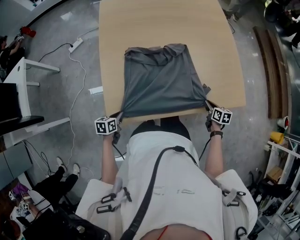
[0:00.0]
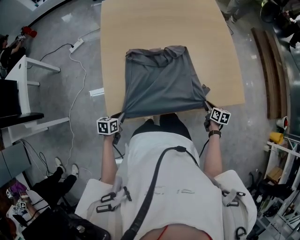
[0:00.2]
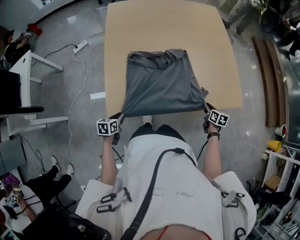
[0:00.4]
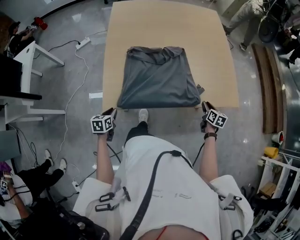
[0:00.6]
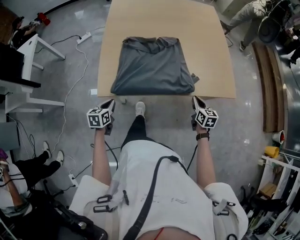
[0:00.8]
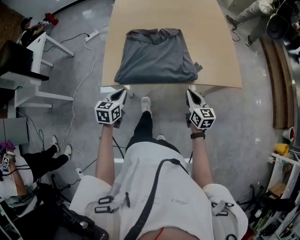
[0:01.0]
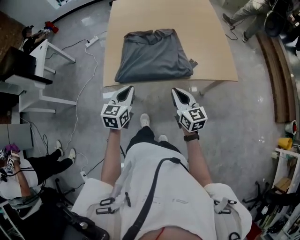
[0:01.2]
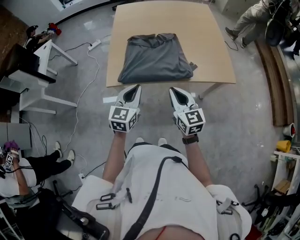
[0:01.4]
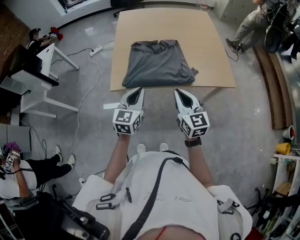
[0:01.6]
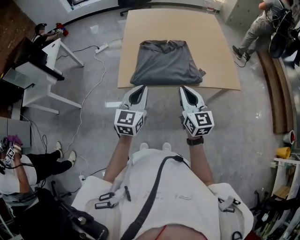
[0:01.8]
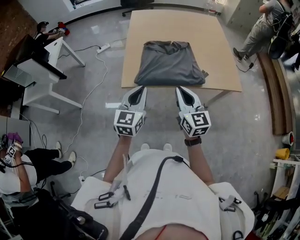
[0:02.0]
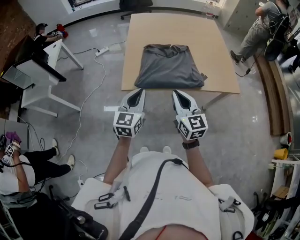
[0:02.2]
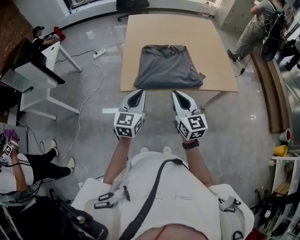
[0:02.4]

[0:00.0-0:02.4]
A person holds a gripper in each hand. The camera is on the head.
0:00.0 to 0:01.2: The right gripper travels upward, backward and to the left by approximately 35 cm, and tips its fingers upward by roughly 40 degrees; the left gripper goes about 35 cm upward, to the right and backward, and rotates about 40 degrees.
0:01.2 to 0:02.4: The left gripper is displaced upward and to the left by approximately 10 cm. The right gripper goes about 20 cm to the left and upward.

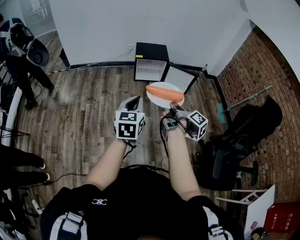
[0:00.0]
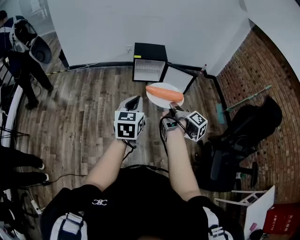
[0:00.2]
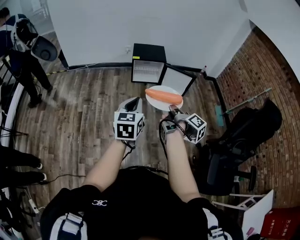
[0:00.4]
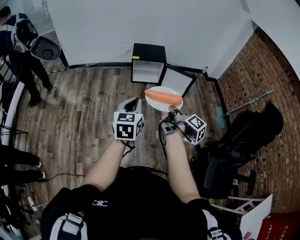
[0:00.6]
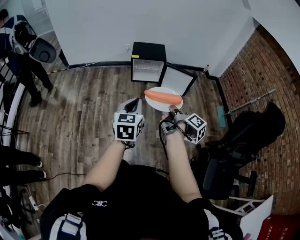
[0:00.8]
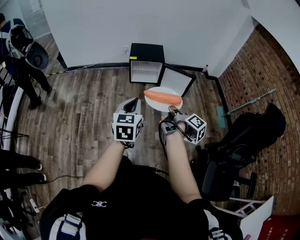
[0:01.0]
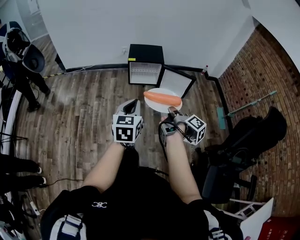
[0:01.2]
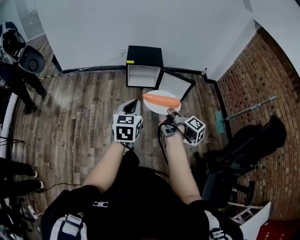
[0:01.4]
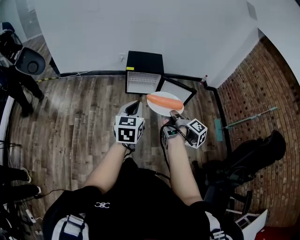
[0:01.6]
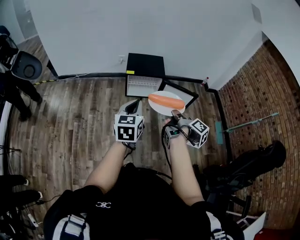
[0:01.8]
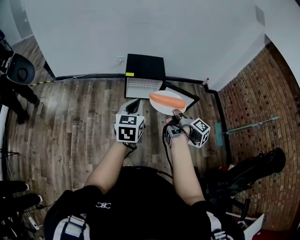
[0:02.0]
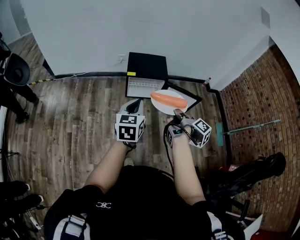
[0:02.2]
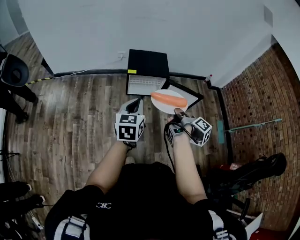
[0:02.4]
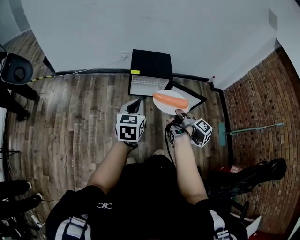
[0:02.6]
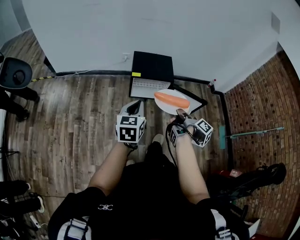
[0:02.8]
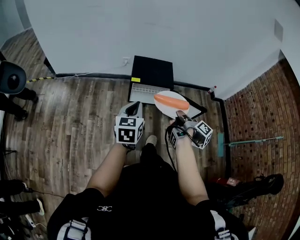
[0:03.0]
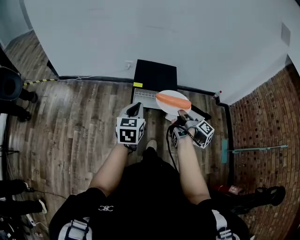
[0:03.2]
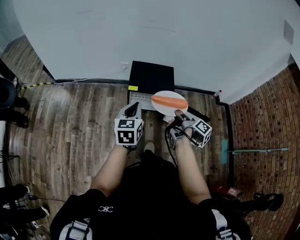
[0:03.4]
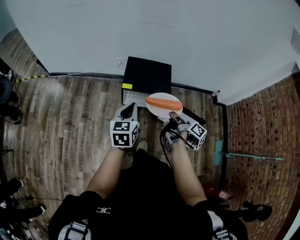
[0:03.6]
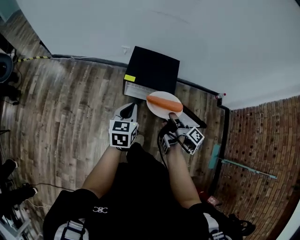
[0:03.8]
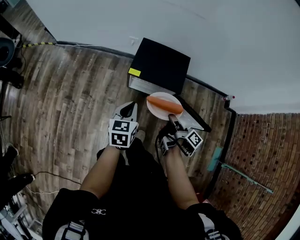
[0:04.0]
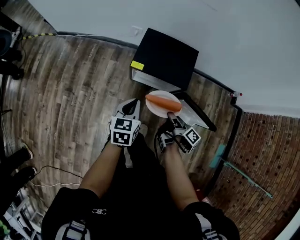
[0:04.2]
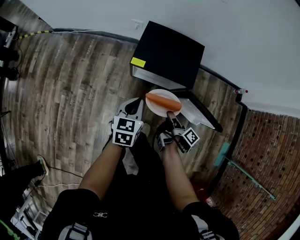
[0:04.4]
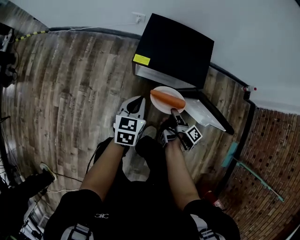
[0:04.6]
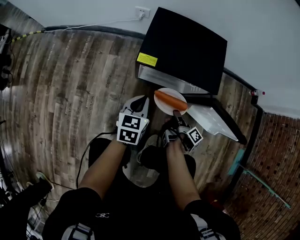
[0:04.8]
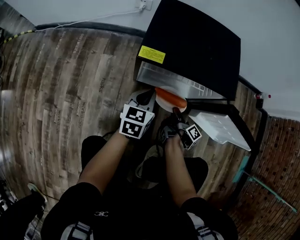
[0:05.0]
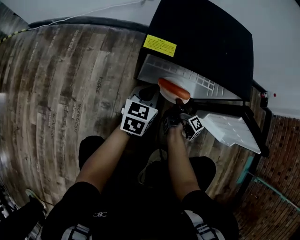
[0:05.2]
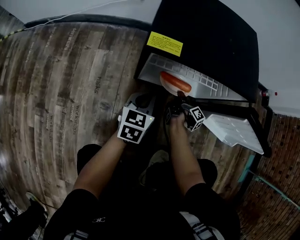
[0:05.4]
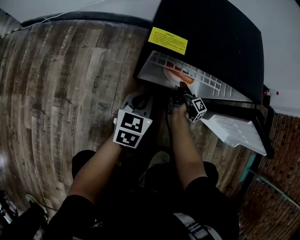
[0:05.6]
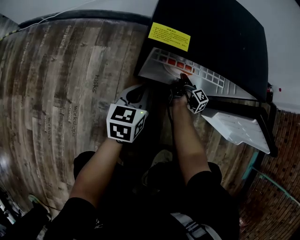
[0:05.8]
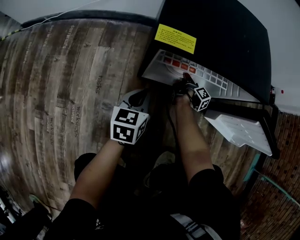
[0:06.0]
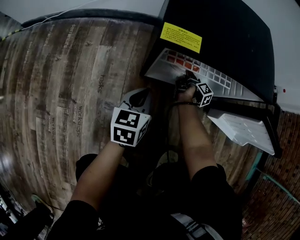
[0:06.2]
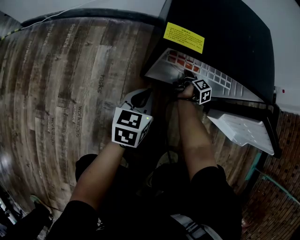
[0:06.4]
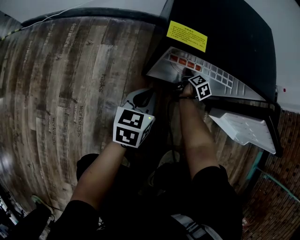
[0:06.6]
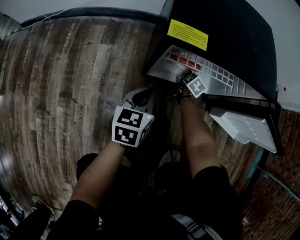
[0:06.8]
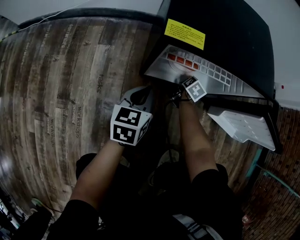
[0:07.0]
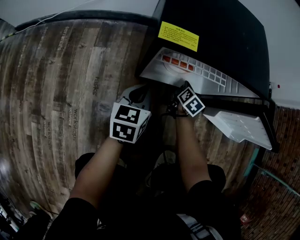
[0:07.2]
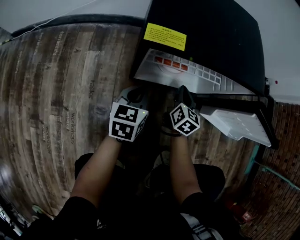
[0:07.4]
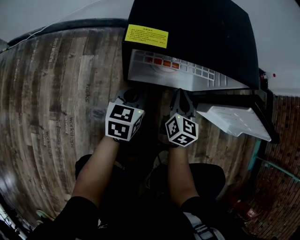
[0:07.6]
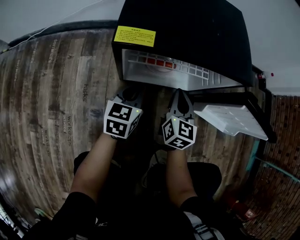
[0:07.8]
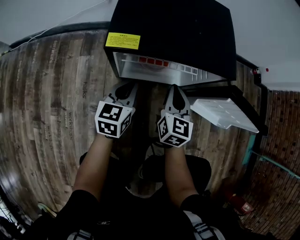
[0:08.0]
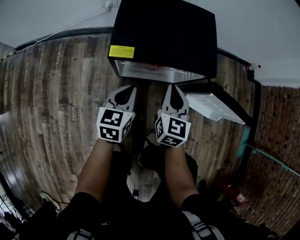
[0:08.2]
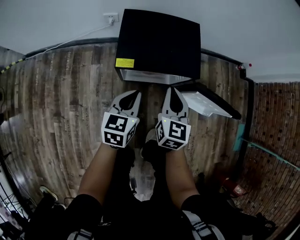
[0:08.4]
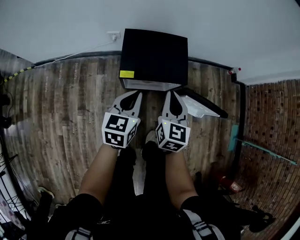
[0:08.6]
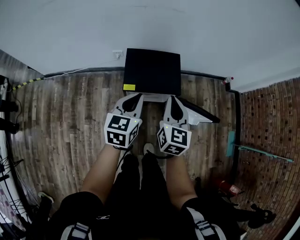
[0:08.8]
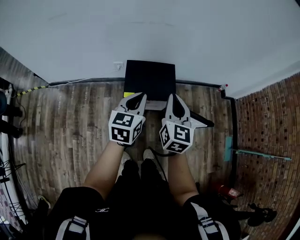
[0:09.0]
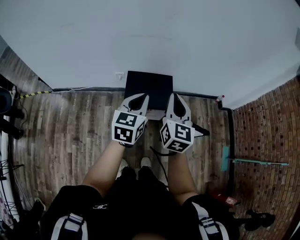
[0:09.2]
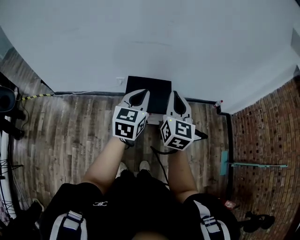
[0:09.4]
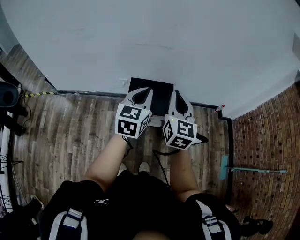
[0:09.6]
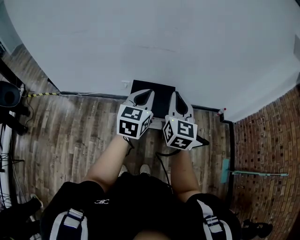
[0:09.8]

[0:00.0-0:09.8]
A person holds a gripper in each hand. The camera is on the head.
0:00.0 to 0:01.4: The left gripper changes place by roughly 20 cm.
0:01.4 to 0:02.8: The left gripper shifts by about 30 cm.
0:02.8 to 0:04.2: The left gripper moves approximately 35 cm.
0:04.2 to 0:05.6: The left gripper is displaced downward by approximately 50 cm.
0:07.0 to 0:08.4: The left gripper is displaced upward by approximately 30 cm.
0:08.4 to 0:09.8: The left gripper is displaced upward by approximately 50 cm.

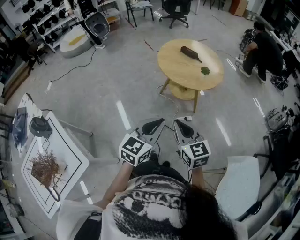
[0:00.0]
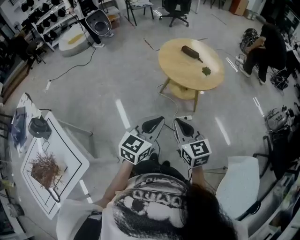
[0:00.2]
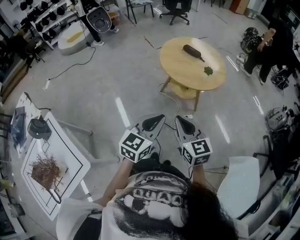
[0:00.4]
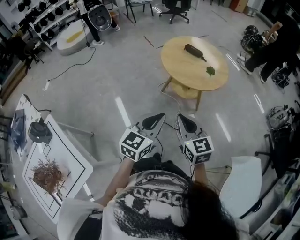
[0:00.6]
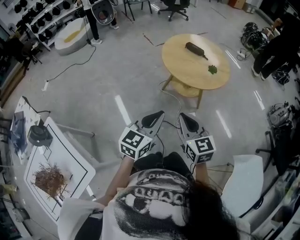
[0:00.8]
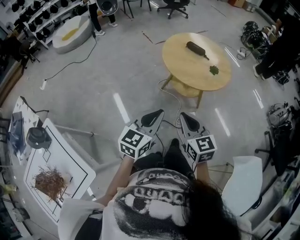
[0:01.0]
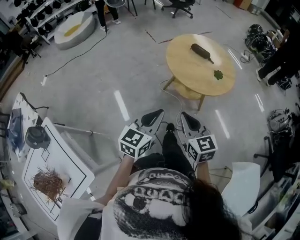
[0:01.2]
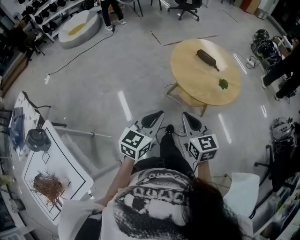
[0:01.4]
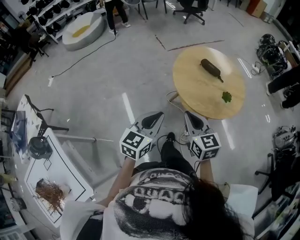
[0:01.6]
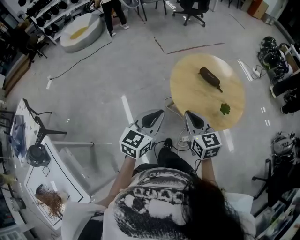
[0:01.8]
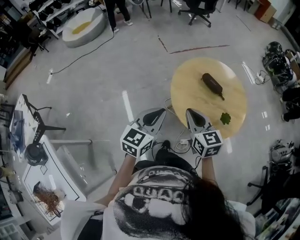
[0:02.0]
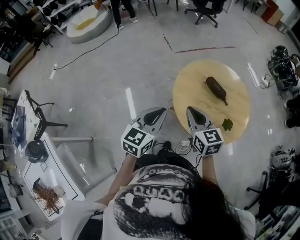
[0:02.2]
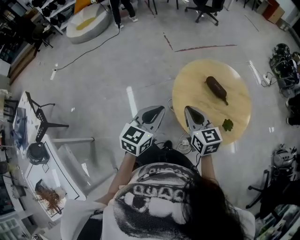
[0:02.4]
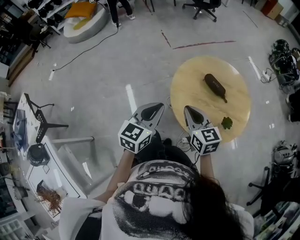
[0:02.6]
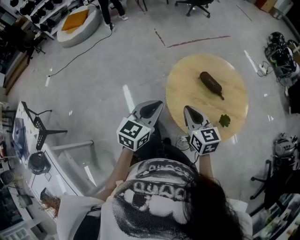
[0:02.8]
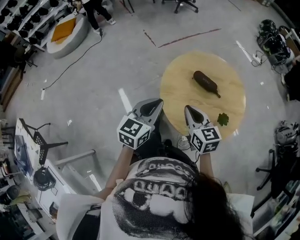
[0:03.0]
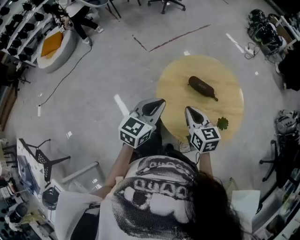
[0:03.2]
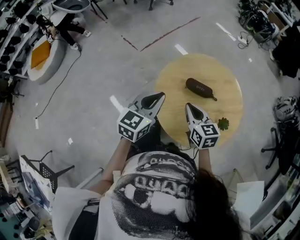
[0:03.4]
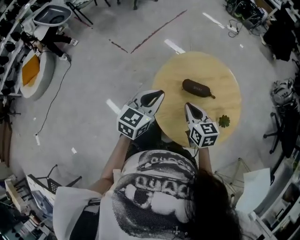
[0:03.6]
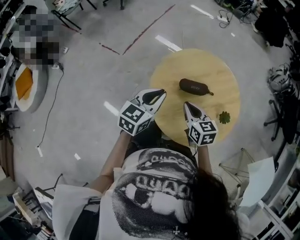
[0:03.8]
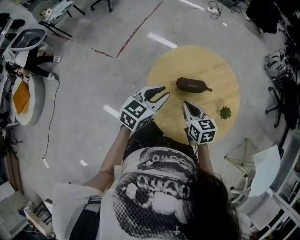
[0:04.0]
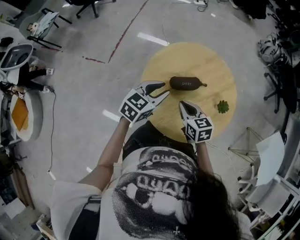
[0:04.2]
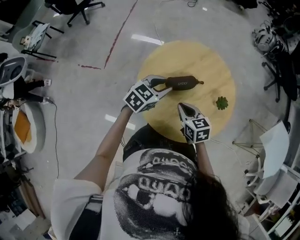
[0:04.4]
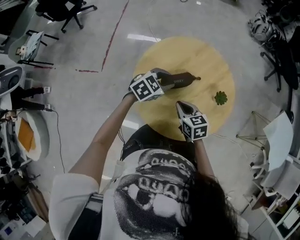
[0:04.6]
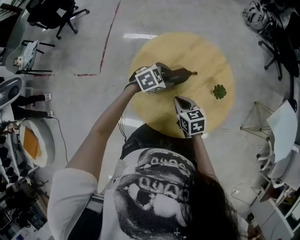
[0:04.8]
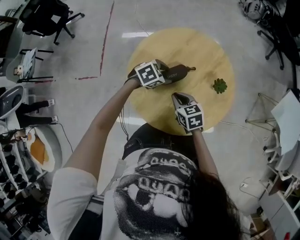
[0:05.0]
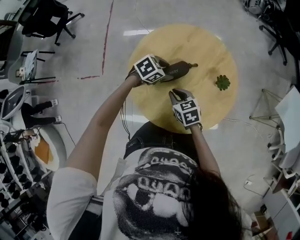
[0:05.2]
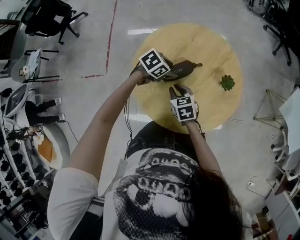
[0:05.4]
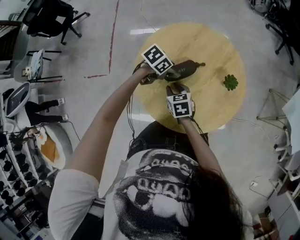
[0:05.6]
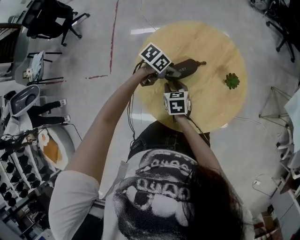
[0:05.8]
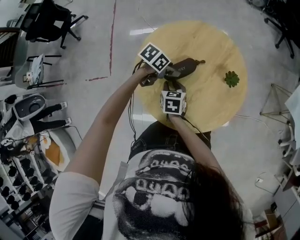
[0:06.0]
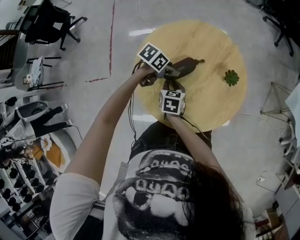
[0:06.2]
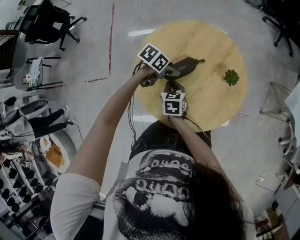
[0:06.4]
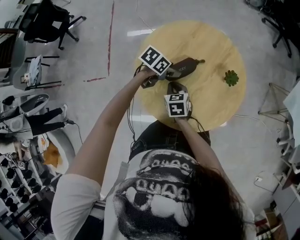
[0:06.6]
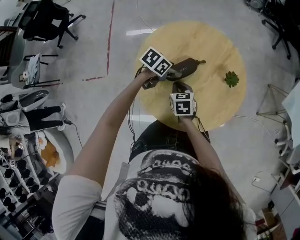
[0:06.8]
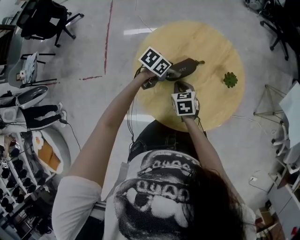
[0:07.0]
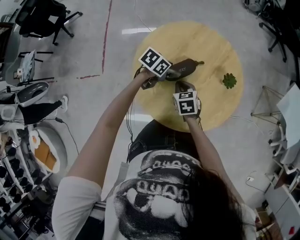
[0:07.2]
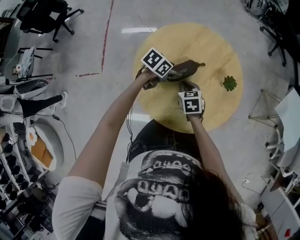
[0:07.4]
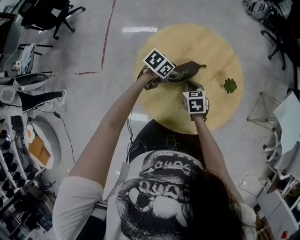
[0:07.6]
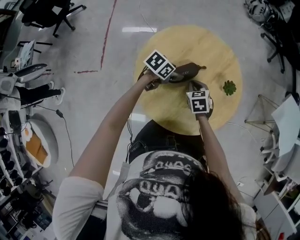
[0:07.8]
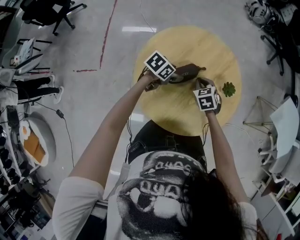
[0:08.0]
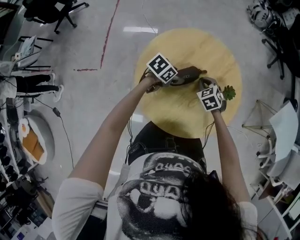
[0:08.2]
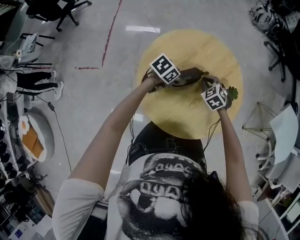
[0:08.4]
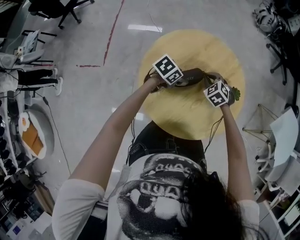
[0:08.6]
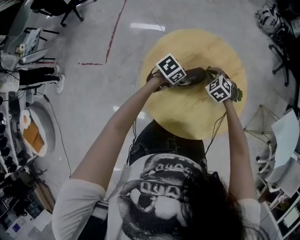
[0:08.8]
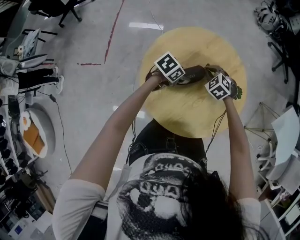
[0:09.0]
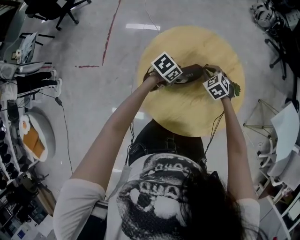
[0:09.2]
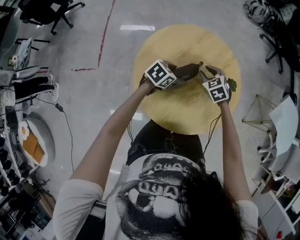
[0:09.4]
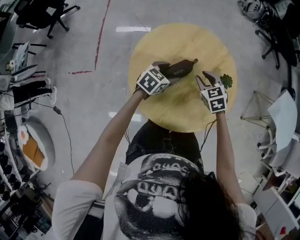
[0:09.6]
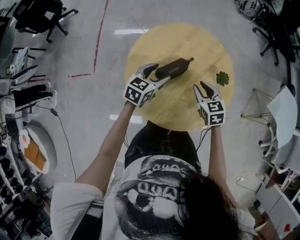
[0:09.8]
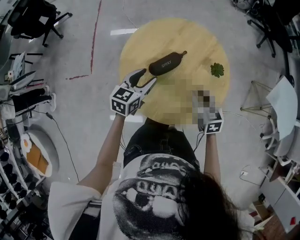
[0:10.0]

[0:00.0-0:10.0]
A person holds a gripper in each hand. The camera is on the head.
0:00.0 to 0:01.4: The left gripper is displaced forward and to the left by some 20 cm, while the right gripper travels forward by approximately 20 cm.
0:01.4 to 0:02.8: Both grippers travel together forward, some 30 cm.
0:02.8 to 0:04.2: The left gripper moves some 30 cm, and turns by approximately 60 degrees, while the right gripper changes place by some 20 cm, and turns by approximately 50 degrees.
0:04.2 to 0:05.8: The grippers both shift downward by roughly 15 cm. The left gripper turns by roughly 50 degrees, and opens its fingers, while the right gripper rotates roughly 30 degrees, and opens its fingers.
0:05.8 to 0:07.2: The right gripper changes place by approximately 5 cm, and closes up.
0:07.2 to 0:08.6: The right gripper shifts about 10 cm forward, and rolls counterclockwise, seen from behind, by roughly 40 degrees.
0:08.6 to 0:10.0: The left gripper heads upward and backward, covering about 15 cm, and swivels approximately 40 degrees. The right gripper is displaced backward, upward and to the right by some 15 cm, rotates around the line of its fingers by approximately 40 degrees, clockwise from behind, and opens its fingers.

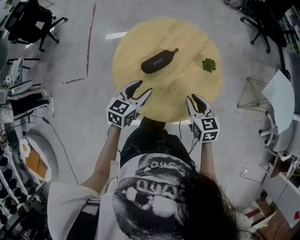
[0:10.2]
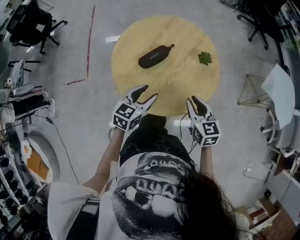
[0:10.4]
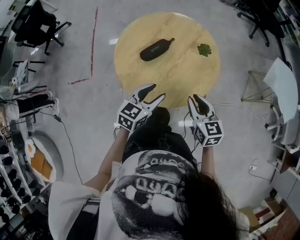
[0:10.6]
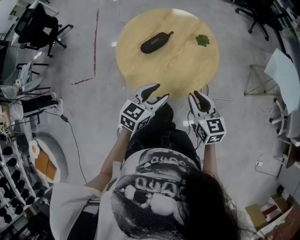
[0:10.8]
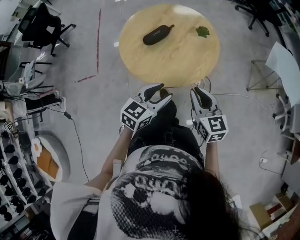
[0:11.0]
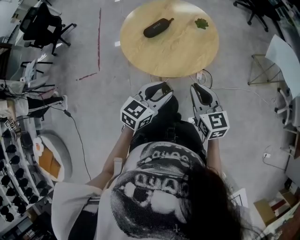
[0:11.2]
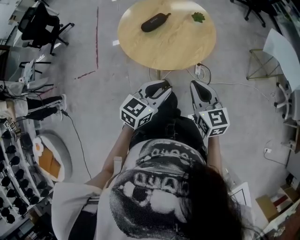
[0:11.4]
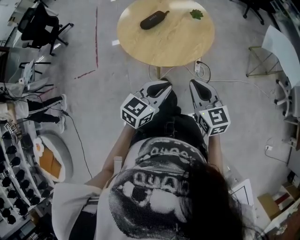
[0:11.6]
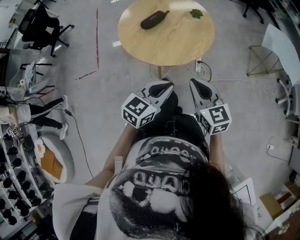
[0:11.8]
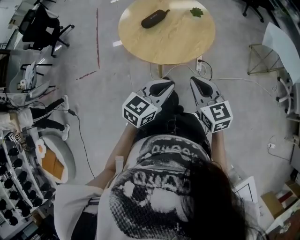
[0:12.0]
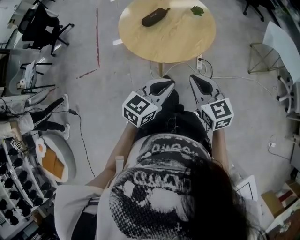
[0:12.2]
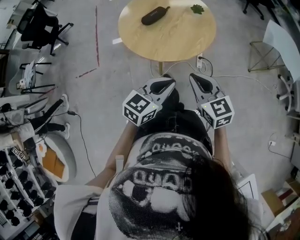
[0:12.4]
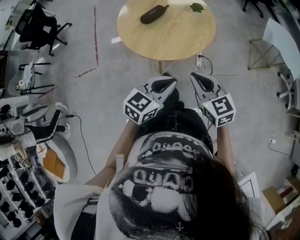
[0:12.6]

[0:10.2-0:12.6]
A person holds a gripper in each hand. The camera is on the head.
0:10.2 to 0:11.4: The left gripper heads backward and to the right, covering some 30 cm, and closes; the right gripper shifts roughly 25 cm backward and upward.
0:11.4 to 0:12.6: There are only small adjustments of the grippers.
